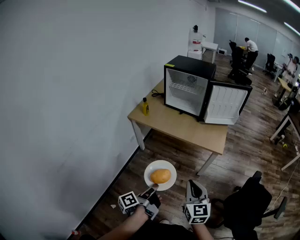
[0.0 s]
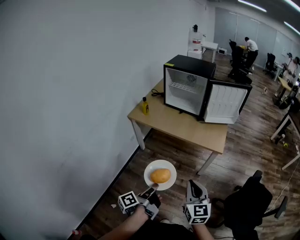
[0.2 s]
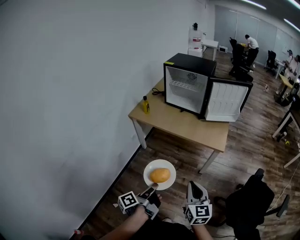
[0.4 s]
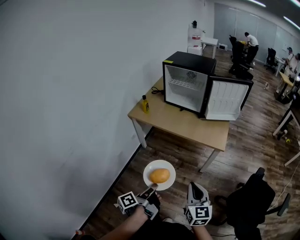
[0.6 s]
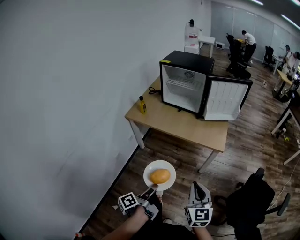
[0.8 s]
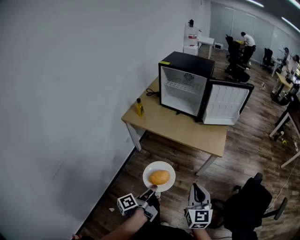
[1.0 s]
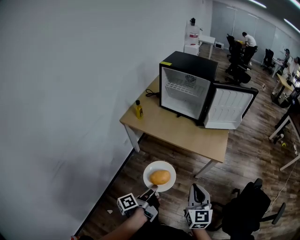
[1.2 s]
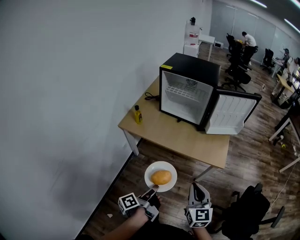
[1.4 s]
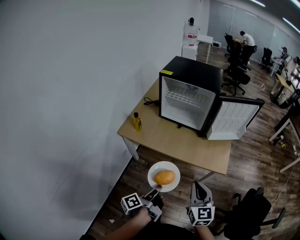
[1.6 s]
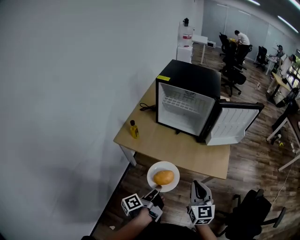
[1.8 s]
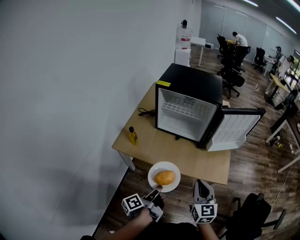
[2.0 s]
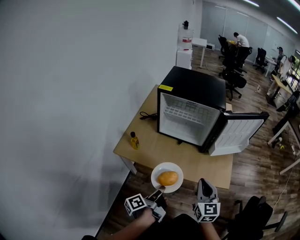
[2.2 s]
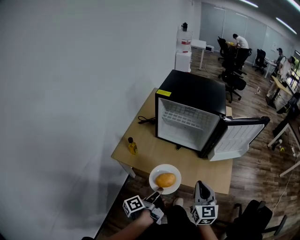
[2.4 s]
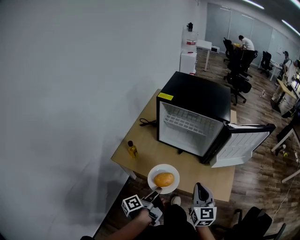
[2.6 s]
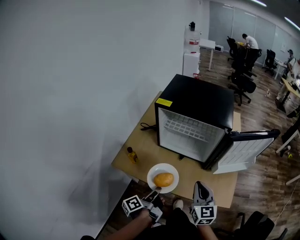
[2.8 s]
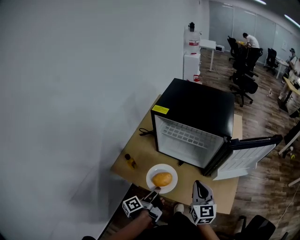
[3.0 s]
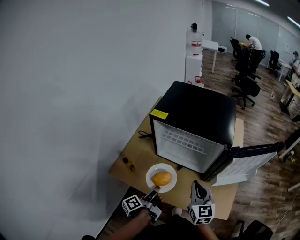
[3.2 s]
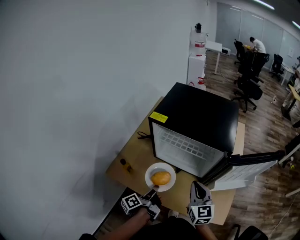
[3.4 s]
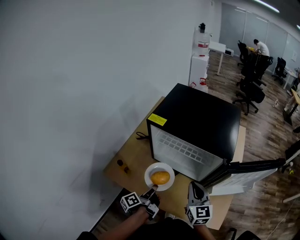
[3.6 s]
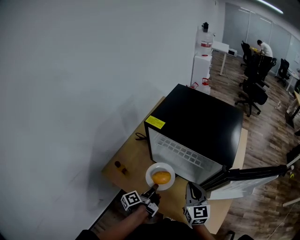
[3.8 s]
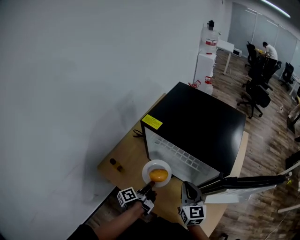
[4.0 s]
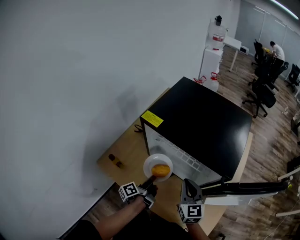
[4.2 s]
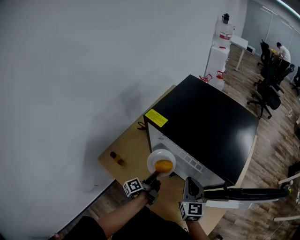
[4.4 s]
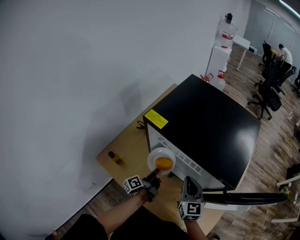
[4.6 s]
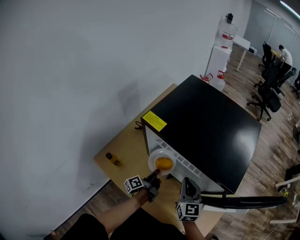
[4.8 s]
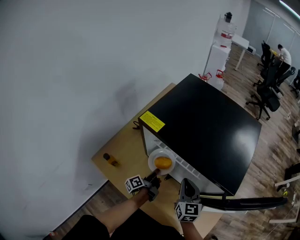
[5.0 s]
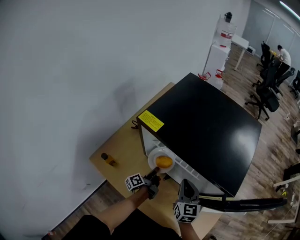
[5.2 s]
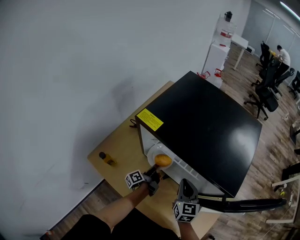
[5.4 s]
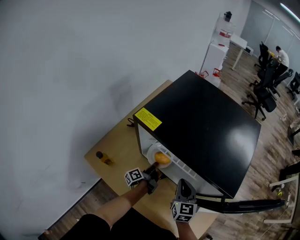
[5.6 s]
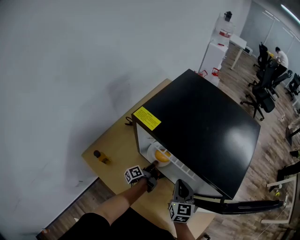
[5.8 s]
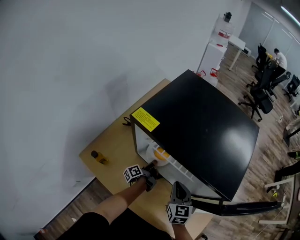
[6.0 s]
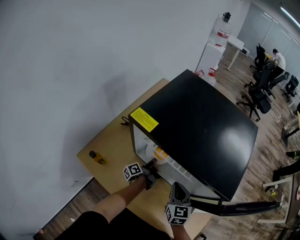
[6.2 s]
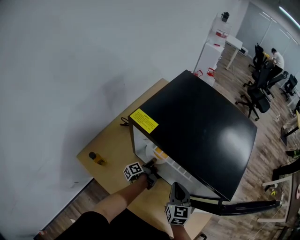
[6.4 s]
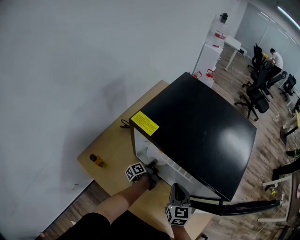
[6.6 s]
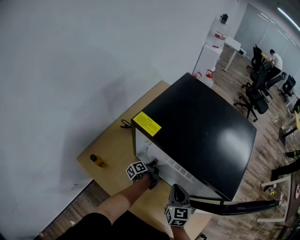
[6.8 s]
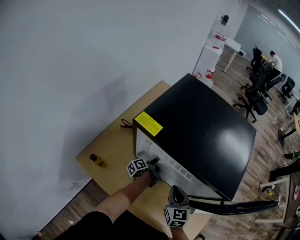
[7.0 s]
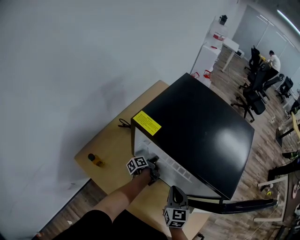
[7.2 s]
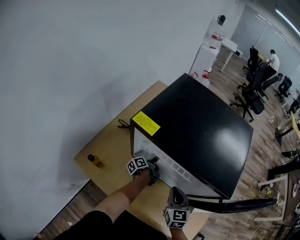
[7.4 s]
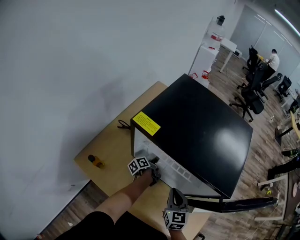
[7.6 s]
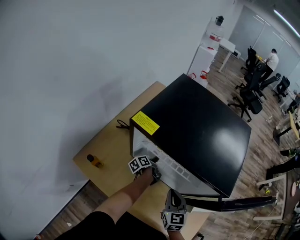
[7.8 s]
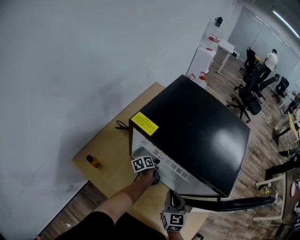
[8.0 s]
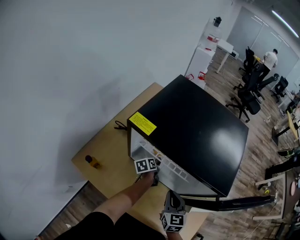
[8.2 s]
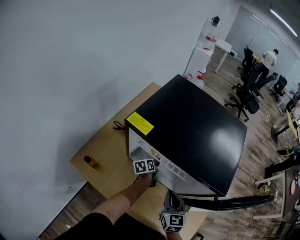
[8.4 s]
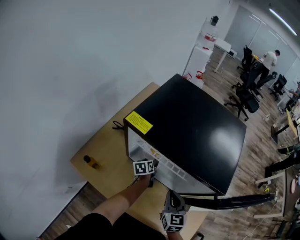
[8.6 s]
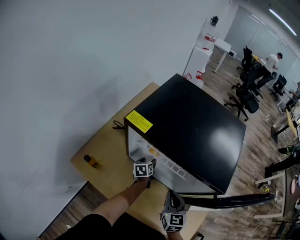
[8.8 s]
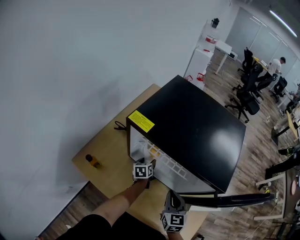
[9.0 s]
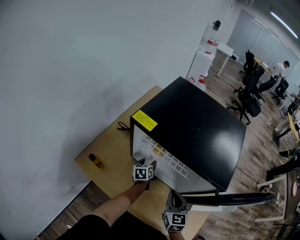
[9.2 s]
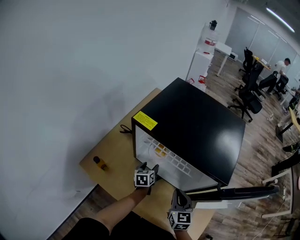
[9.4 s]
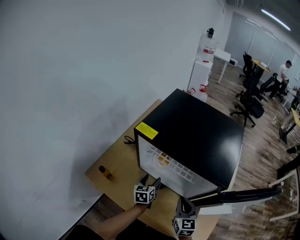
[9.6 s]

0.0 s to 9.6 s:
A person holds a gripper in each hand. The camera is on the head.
0.0 to 1.6 s: The right gripper changes place by approximately 20 cm.
1.6 to 3.2 s: The right gripper changes place by about 35 cm.
3.2 to 4.8 s: The right gripper moves about 20 cm.
4.8 to 6.4 s: The right gripper is displaced downward by roughly 5 cm.

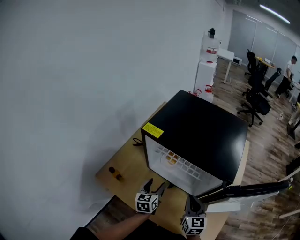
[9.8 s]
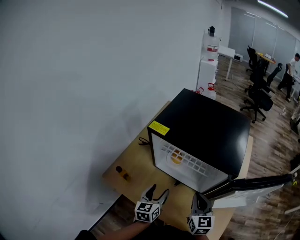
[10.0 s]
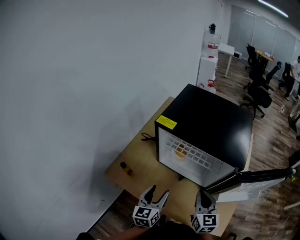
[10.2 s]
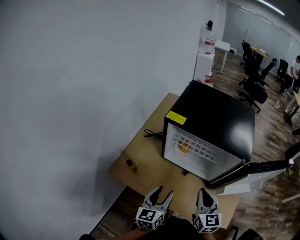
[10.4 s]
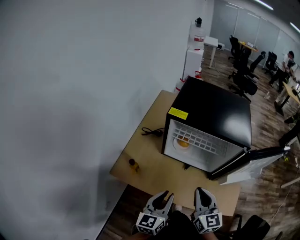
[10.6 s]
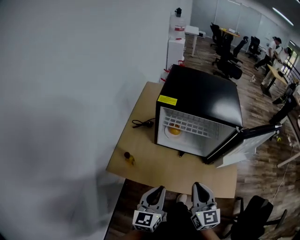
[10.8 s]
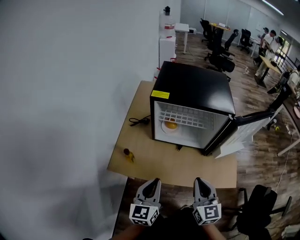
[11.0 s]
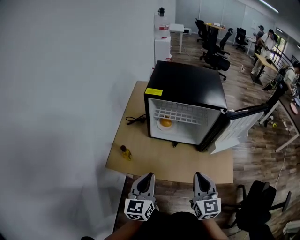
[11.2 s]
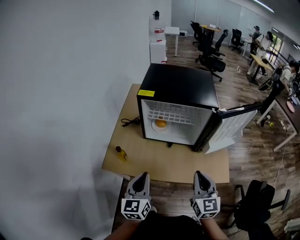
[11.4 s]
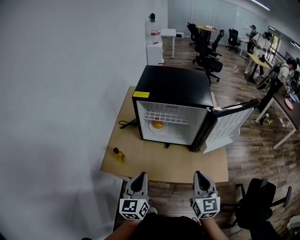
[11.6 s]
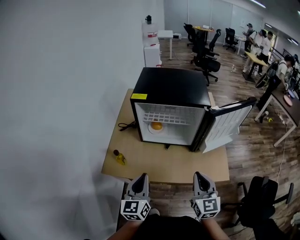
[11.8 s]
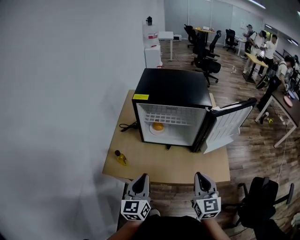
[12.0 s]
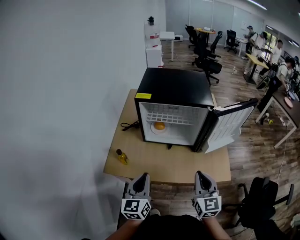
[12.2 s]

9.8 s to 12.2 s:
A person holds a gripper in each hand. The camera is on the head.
9.8 to 11.0 s: The right gripper ends up approximately 25 cm from where it was.
11.0 to 12.2 s: The right gripper moves approximately 5 cm.

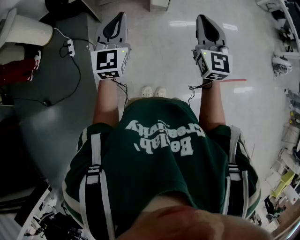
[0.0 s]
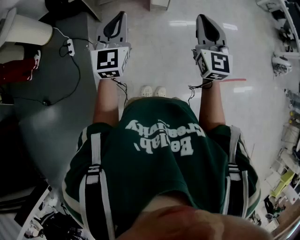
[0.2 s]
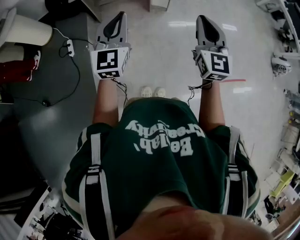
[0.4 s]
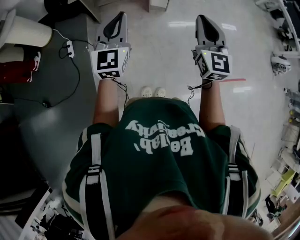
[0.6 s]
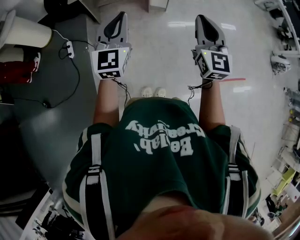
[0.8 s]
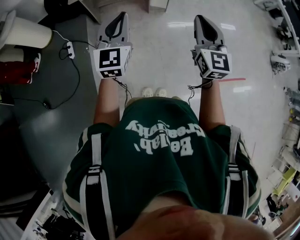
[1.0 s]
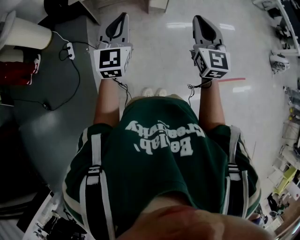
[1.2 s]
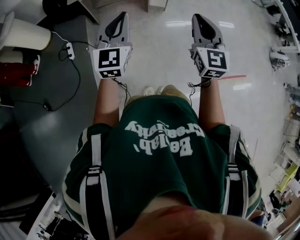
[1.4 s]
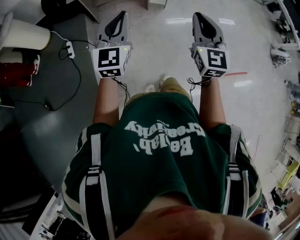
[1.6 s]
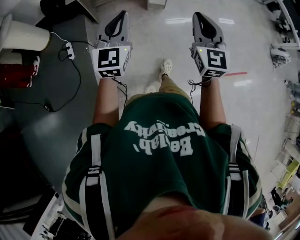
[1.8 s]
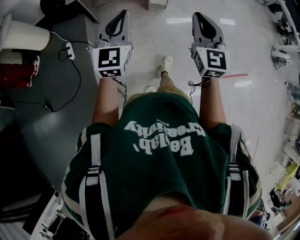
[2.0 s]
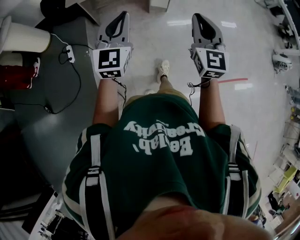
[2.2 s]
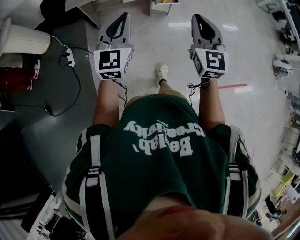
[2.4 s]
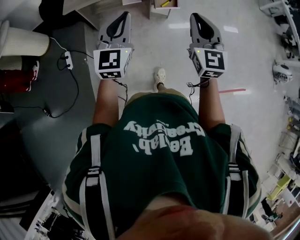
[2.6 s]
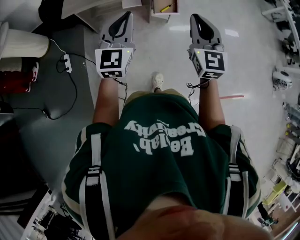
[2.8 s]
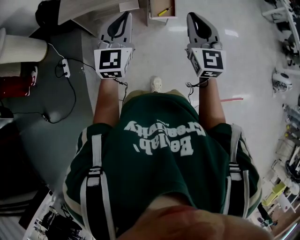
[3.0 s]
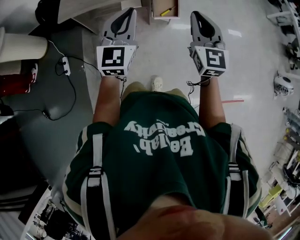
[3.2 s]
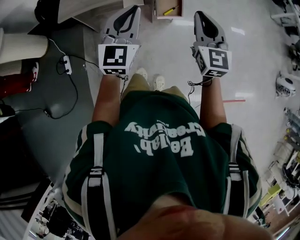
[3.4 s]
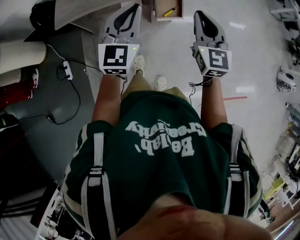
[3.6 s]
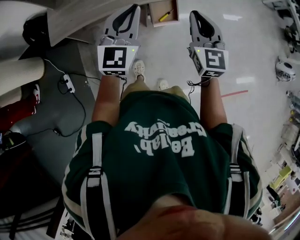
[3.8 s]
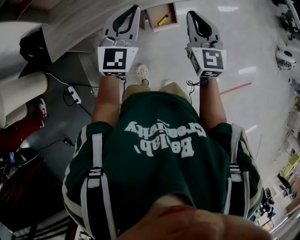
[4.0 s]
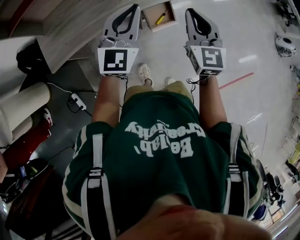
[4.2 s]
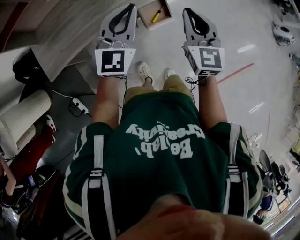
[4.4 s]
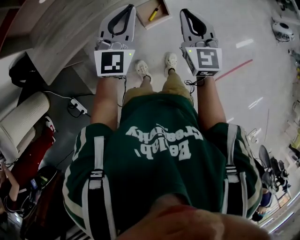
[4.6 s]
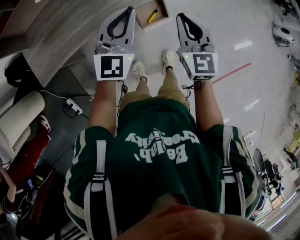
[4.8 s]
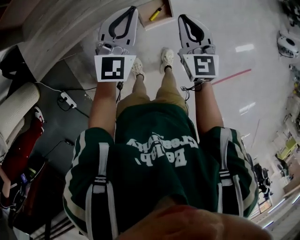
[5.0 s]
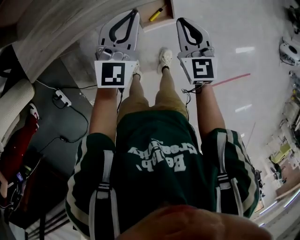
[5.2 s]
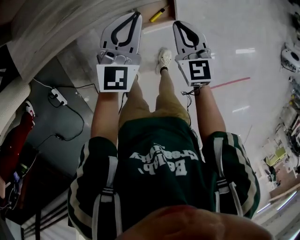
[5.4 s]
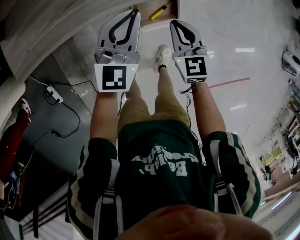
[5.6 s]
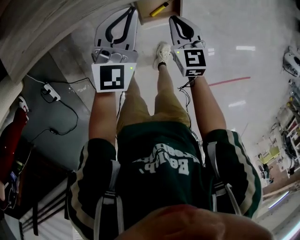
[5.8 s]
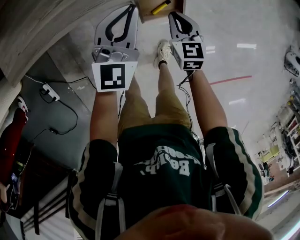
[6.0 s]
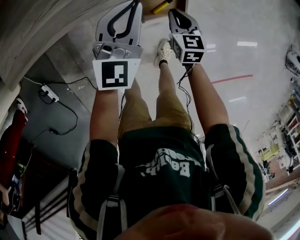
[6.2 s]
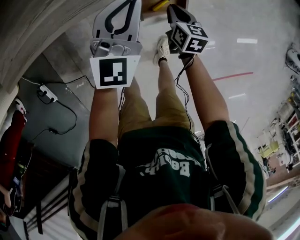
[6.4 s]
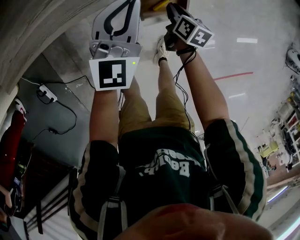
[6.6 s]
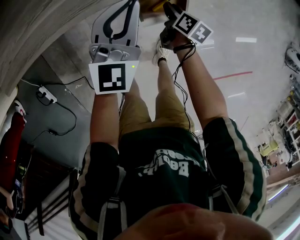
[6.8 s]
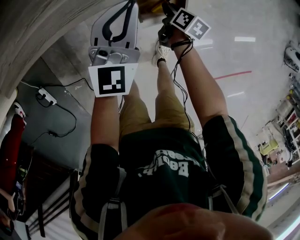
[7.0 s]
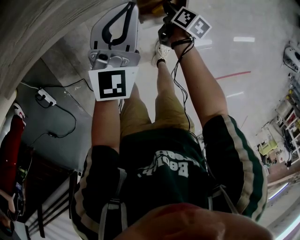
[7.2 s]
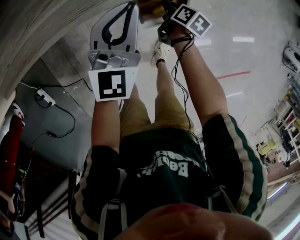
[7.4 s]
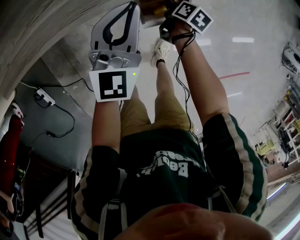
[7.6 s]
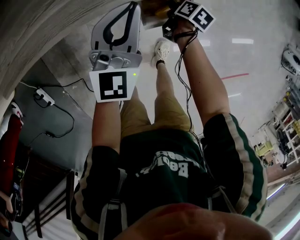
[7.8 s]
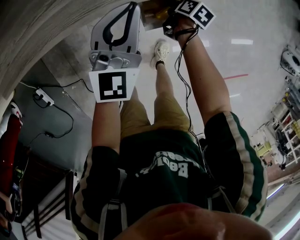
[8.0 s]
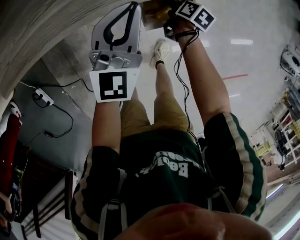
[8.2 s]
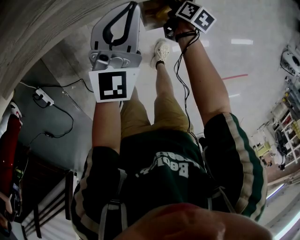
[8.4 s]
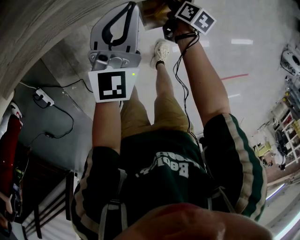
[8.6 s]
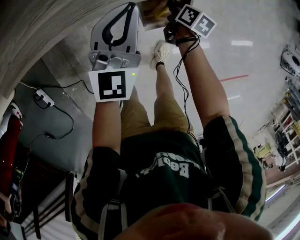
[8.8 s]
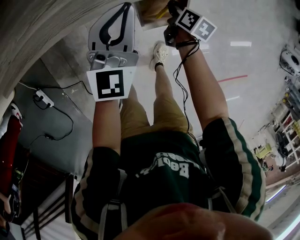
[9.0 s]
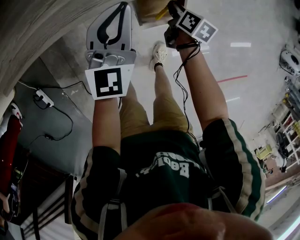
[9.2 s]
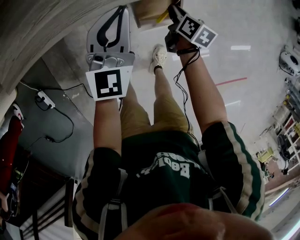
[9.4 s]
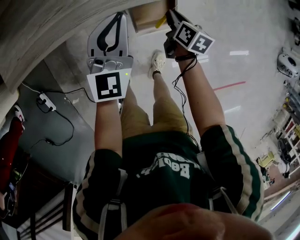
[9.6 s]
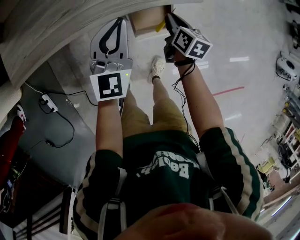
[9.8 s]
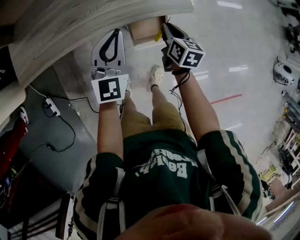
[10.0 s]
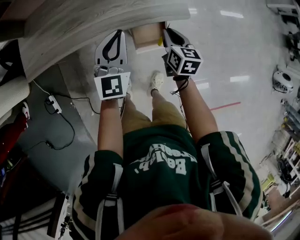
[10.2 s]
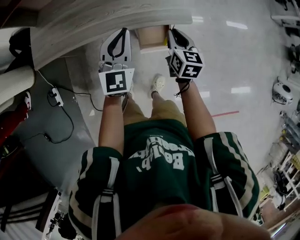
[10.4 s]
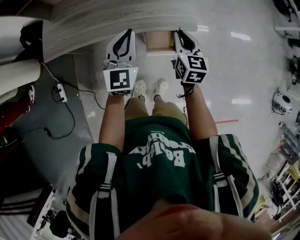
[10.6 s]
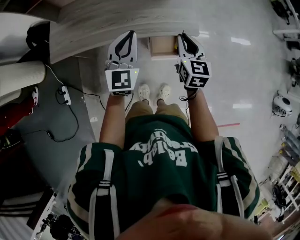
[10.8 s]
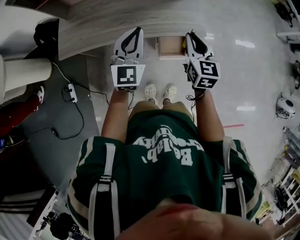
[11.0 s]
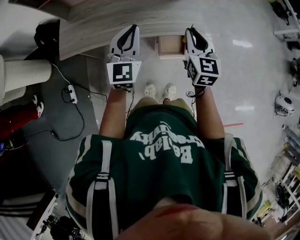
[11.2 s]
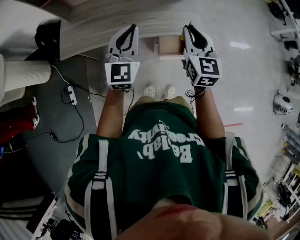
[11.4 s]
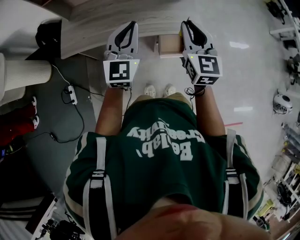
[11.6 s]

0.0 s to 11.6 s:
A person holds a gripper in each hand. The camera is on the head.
0.0 to 1.4 s: The grippers move only a little.
1.4 to 2.8 s: The two grippers go about 25 cm forward.
2.8 to 4.4 s: Both grippers move forward, approximately 35 cm. The left gripper changes its angle by approximately 30 degrees. The right gripper changes its angle by some 20 degrees.
4.4 to 5.8 s: The right gripper is displaced downward by approximately 35 cm, and changes its angle by about 30 degrees. The left gripper moves downward and forward, roughly 30 cm.
5.8 to 7.2 s: The left gripper shifts by some 5 cm, while the right gripper goes roughly 20 cm downward, rotates around the line of its fingers by some 60 degrees, clockwise from behind, and opens.
7.2 to 8.8 s: The grippers move only a little.
8.8 to 10.2 s: The left gripper heads upward, covering approximately 15 cm. Meanwhile the right gripper shifts some 30 cm upward, and turns by about 30 degrees.
10.2 to 11.6 s: The left gripper goes approximately 25 cm upward, to the left and backward. The right gripper shifts roughly 35 cm upward, and swivels some 40 degrees.
